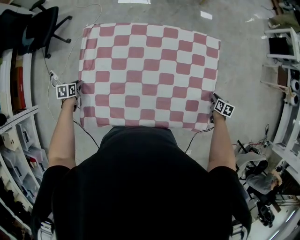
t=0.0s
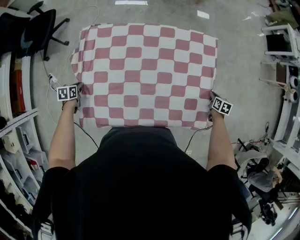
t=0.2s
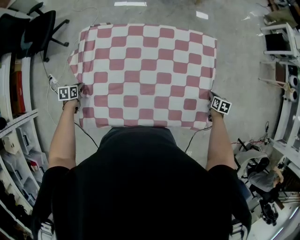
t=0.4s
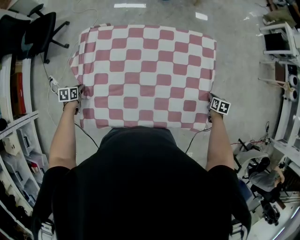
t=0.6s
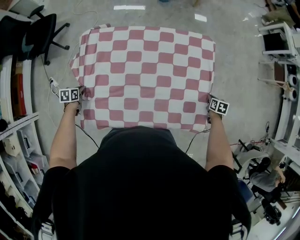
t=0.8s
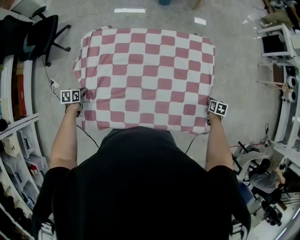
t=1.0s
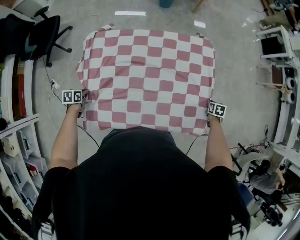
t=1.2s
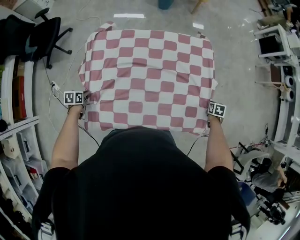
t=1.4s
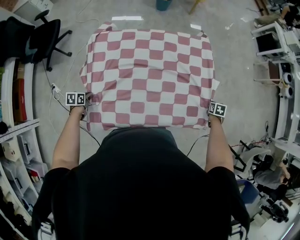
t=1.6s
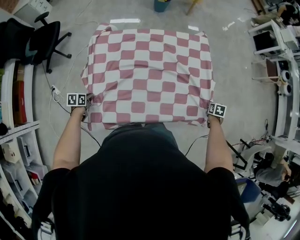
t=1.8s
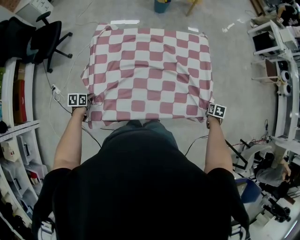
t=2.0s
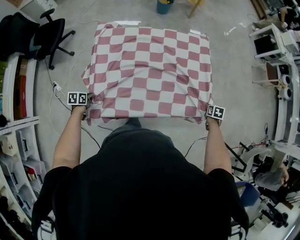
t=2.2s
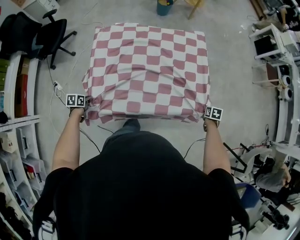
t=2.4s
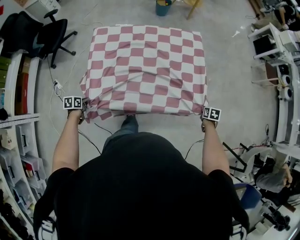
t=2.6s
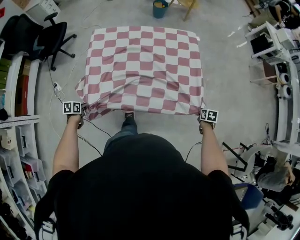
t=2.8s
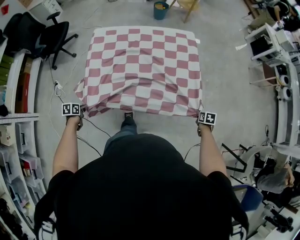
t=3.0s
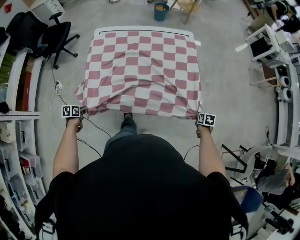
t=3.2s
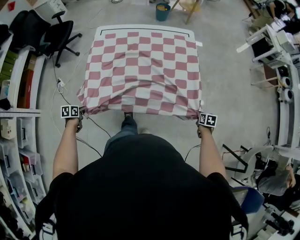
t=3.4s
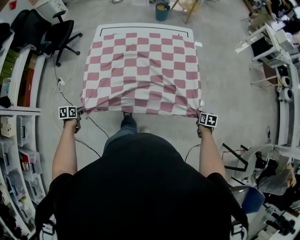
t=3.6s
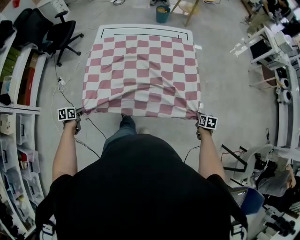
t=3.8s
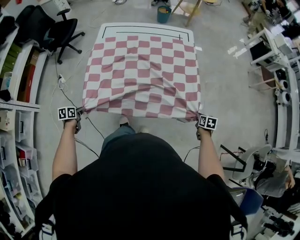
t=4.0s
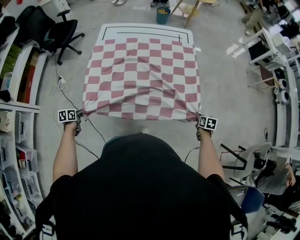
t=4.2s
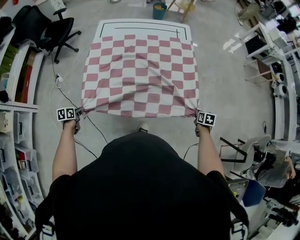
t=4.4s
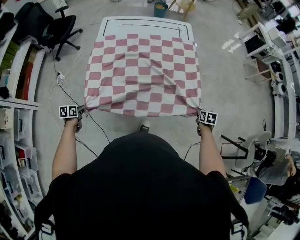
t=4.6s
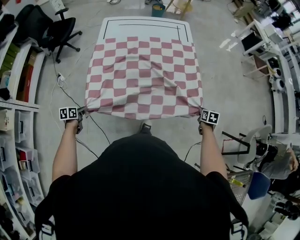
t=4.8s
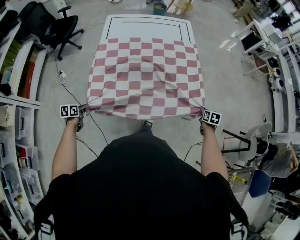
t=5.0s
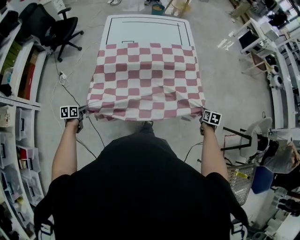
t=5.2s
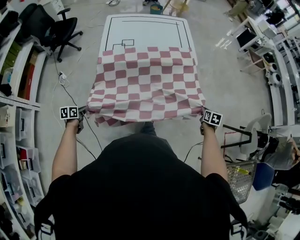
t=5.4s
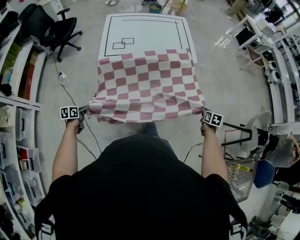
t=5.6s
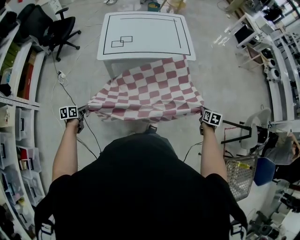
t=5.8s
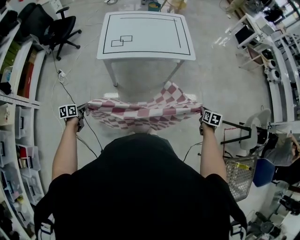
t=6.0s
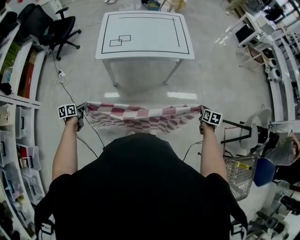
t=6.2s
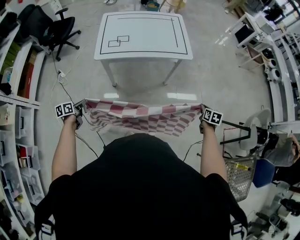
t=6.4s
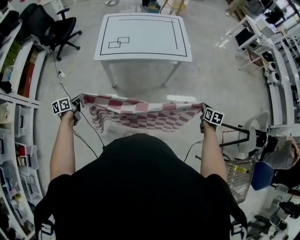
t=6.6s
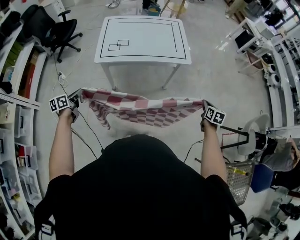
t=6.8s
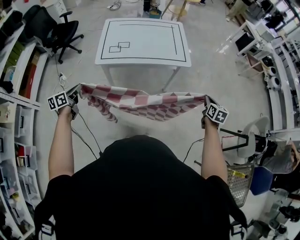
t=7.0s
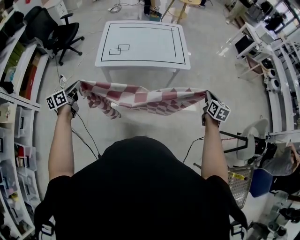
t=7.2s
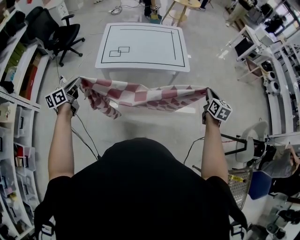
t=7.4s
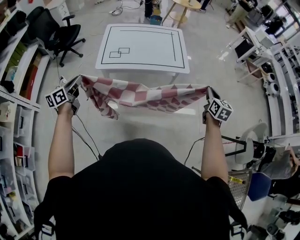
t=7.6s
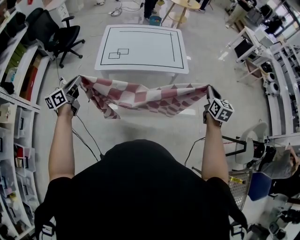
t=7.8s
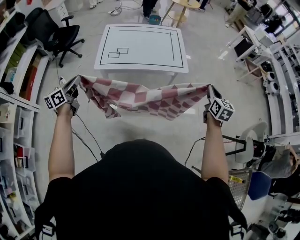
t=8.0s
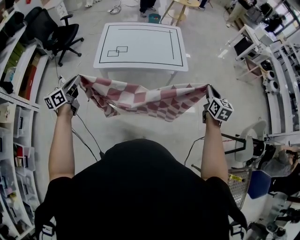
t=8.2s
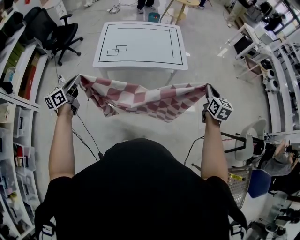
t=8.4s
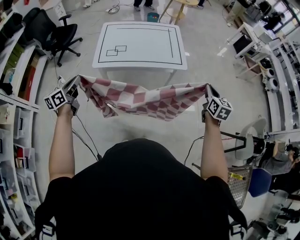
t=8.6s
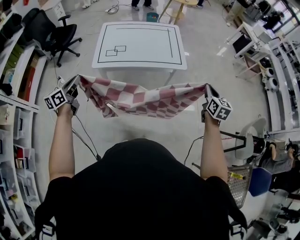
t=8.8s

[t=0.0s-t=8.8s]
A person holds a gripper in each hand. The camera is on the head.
t=0.0s to t=1.4s: The two grippers go about 10 cm backward.
t=1.4s to t=3.0s: The grippers both shift backward and to the right by some 25 cm.
t=3.0s to t=4.4s: Both grippers move backward, about 20 cm.
t=4.4s to t=5.8s: Both grippers travel together backward, some 25 cm.
t=5.8s to t=7.4s: Both grippers travel together upward and forward, about 25 cm. The right gripper swivels roughly 30 degrees; the left gripper angles its fingers upward, by approximately 30 degrees.
t=7.4s to t=8.8s: There are only small adjustments of the grippers.

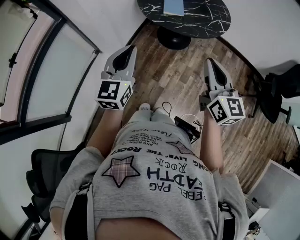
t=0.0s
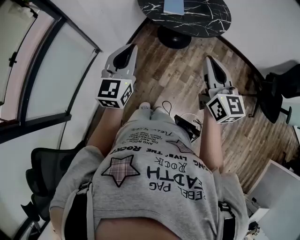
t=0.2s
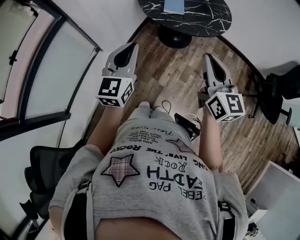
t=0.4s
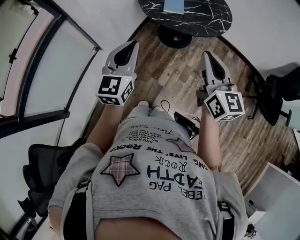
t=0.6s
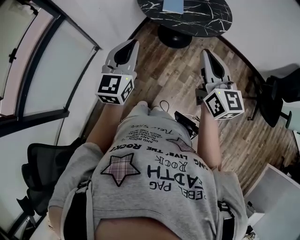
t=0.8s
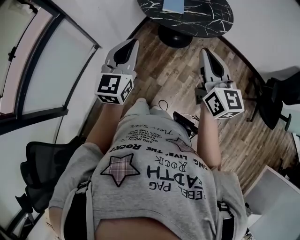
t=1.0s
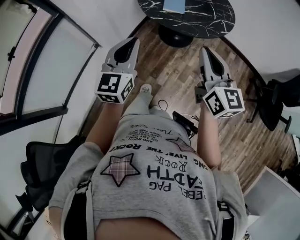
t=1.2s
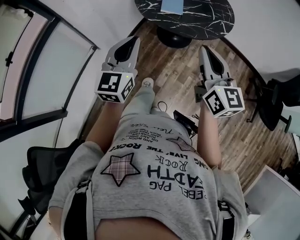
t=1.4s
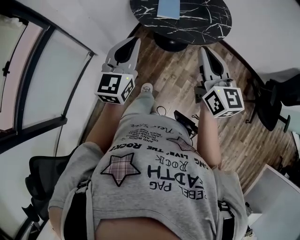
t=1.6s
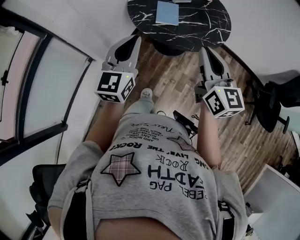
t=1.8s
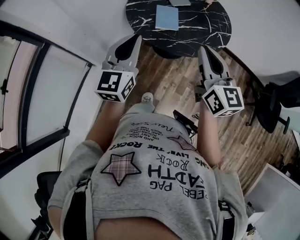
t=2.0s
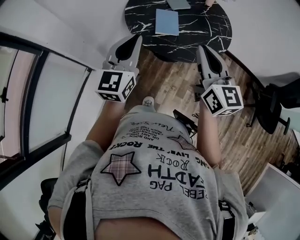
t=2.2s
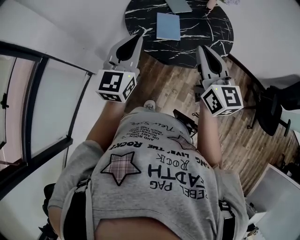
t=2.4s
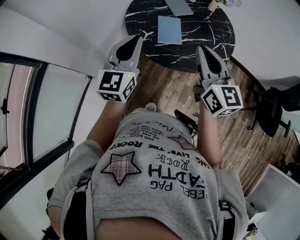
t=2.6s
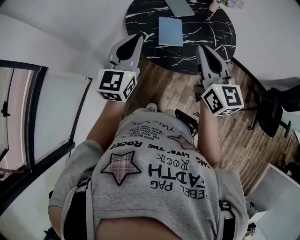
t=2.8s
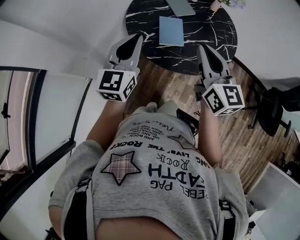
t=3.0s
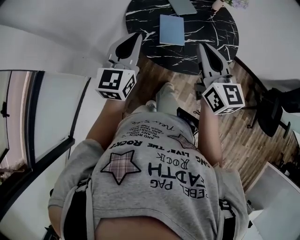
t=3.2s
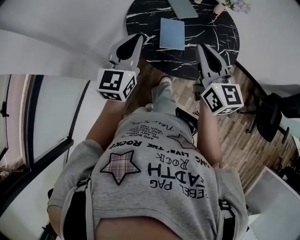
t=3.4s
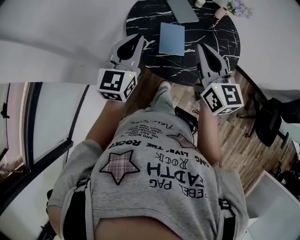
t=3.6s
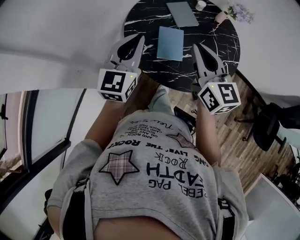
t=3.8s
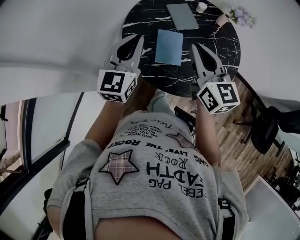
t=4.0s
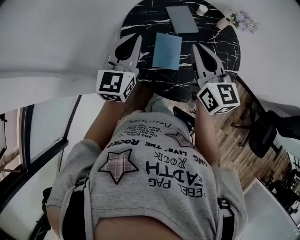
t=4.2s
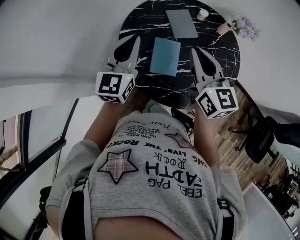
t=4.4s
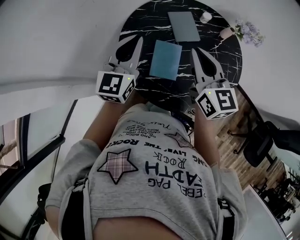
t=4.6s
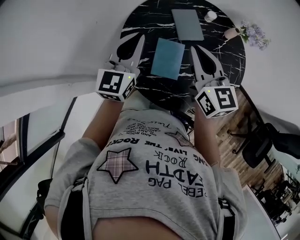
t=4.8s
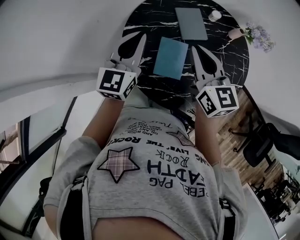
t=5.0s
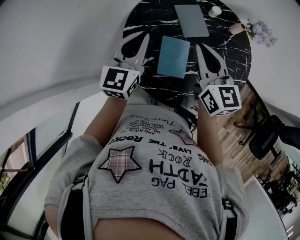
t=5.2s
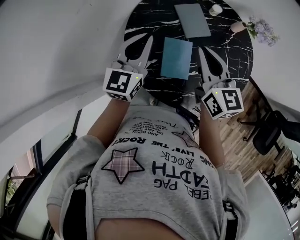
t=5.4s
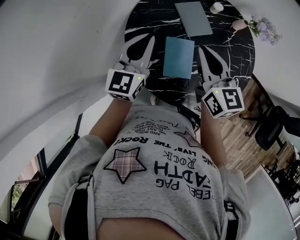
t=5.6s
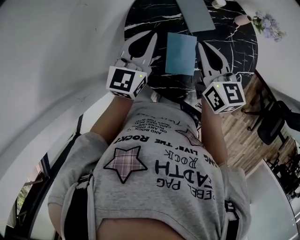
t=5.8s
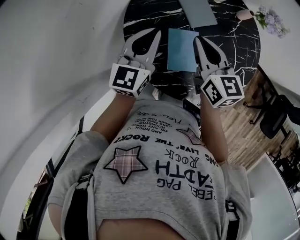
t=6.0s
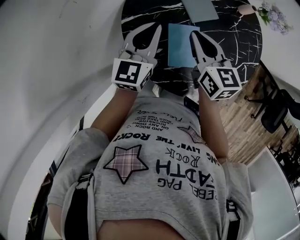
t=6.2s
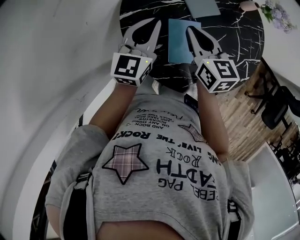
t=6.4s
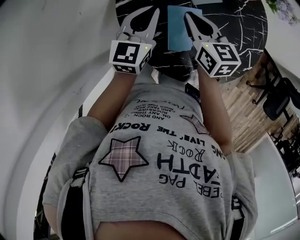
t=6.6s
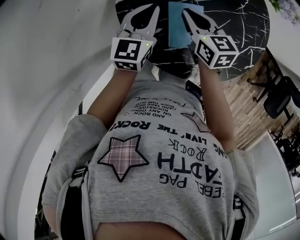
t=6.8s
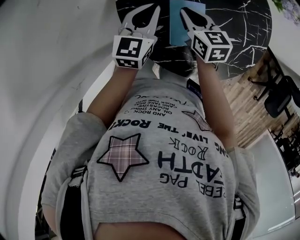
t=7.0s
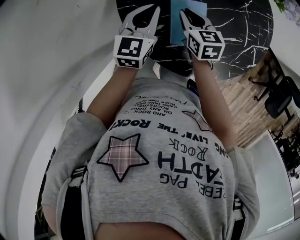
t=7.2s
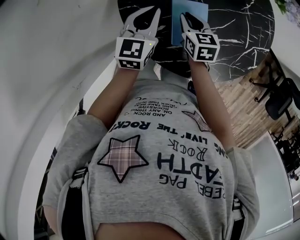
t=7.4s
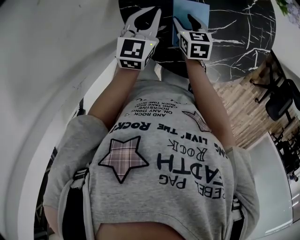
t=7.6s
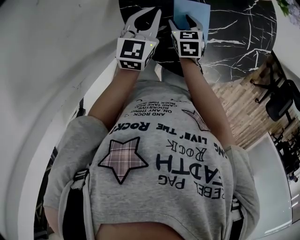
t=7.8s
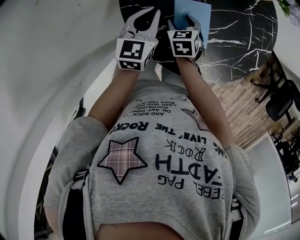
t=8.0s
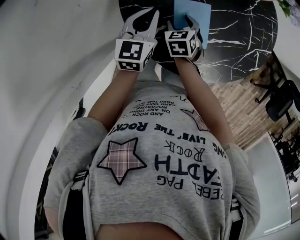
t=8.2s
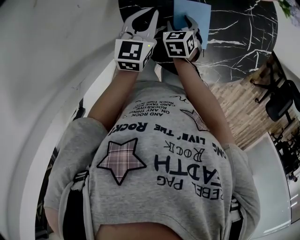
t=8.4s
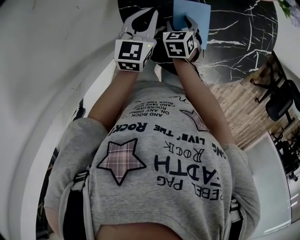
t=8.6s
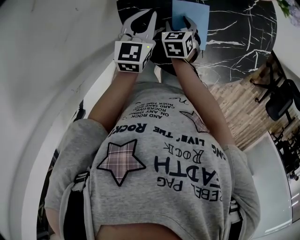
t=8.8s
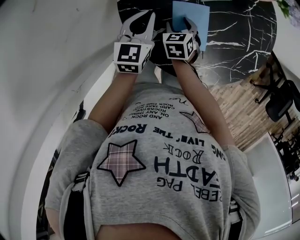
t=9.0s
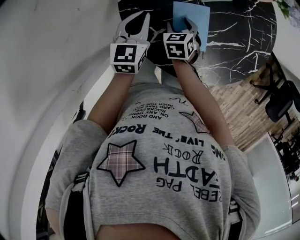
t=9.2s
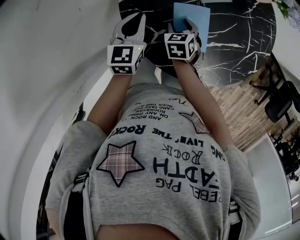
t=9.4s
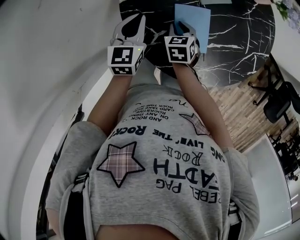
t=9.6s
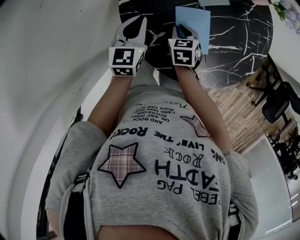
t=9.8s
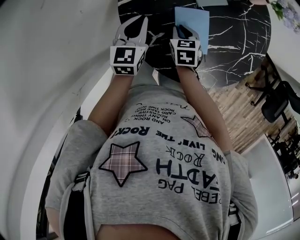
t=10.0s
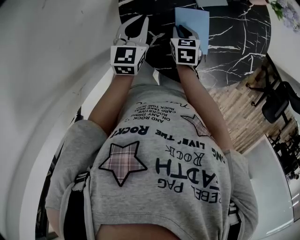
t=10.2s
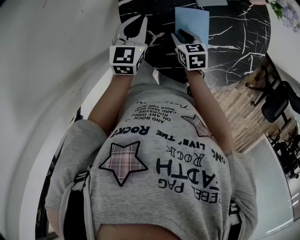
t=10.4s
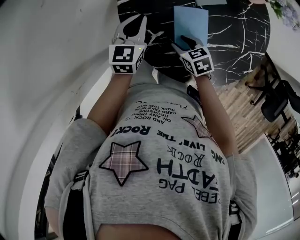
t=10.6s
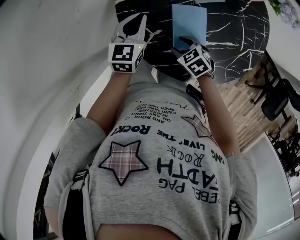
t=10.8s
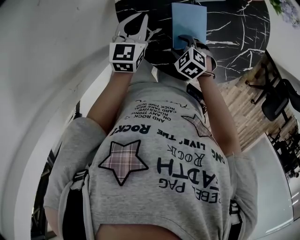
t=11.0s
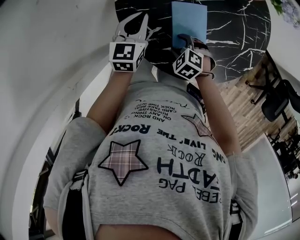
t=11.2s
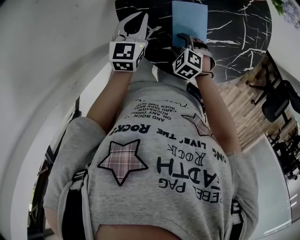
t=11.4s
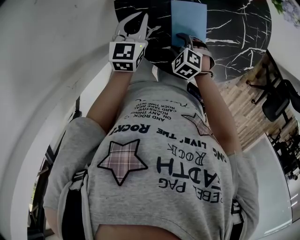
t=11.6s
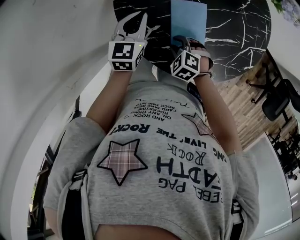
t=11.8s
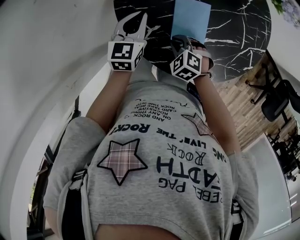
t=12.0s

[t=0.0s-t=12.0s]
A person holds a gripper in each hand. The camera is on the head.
t=0.0s to t=1.6s: The right gripper travels forward by roughly 10 cm; the left gripper heads forward and to the right, covering approximately 15 cm.
t=1.6s to t=3.0s: Both grippers travel together forward, approximately 25 cm.
t=3.0s to t=4.4s: The two grippers go some 20 cm forward.
t=4.4s to t=6.0s: The right gripper shifts about 15 cm downward, forward and to the left. Meanwhile the left gripper travels forward and downward by some 15 cm.
t=6.0s to t=7.6s: The right gripper goes roughly 25 cm downward, turns by roughly 30 degrees, and opens its fingers, while the left gripper shifts roughly 10 cm downward.
t=9.0s to t=10.4s: The right gripper closes its fingers.
t=10.4s to t=12.0s: The right gripper moves backward, roughly 5 cm, twists some 50 degrees counterclockwise, seen from behind, and opens, then closes once more.

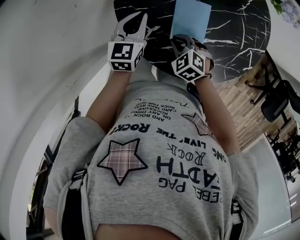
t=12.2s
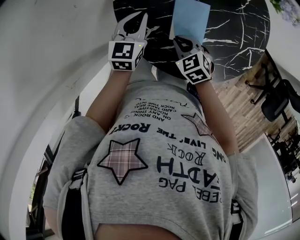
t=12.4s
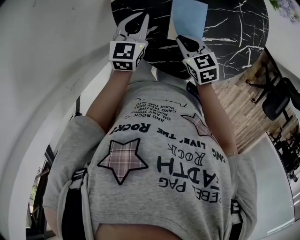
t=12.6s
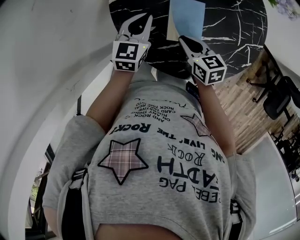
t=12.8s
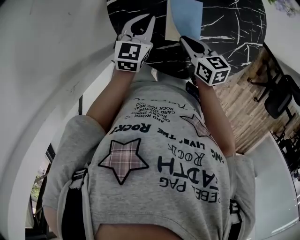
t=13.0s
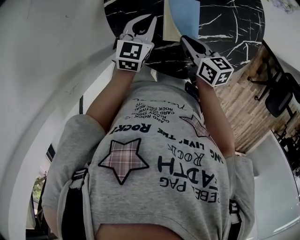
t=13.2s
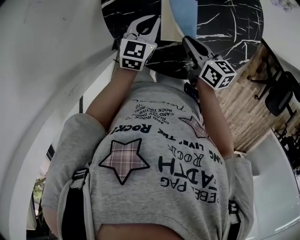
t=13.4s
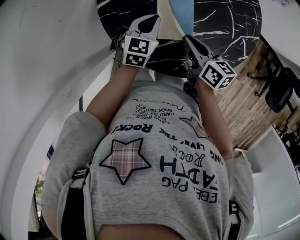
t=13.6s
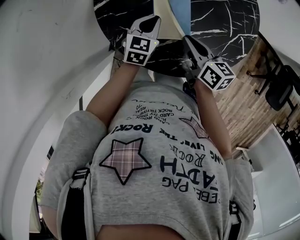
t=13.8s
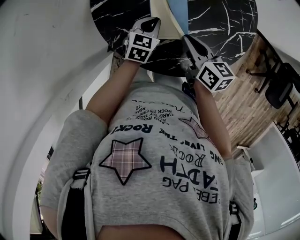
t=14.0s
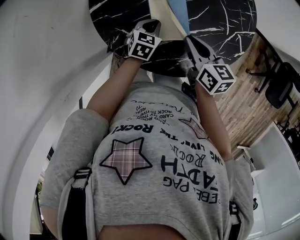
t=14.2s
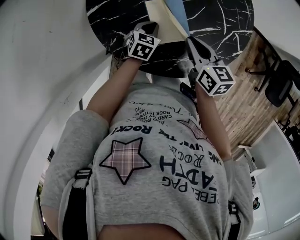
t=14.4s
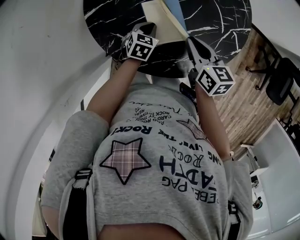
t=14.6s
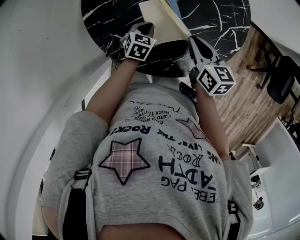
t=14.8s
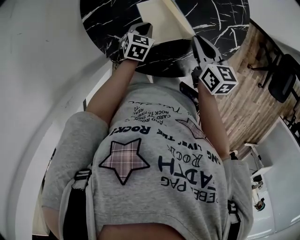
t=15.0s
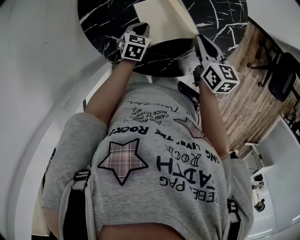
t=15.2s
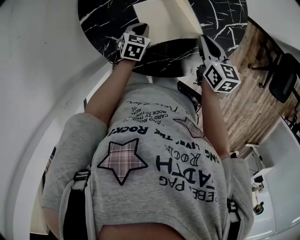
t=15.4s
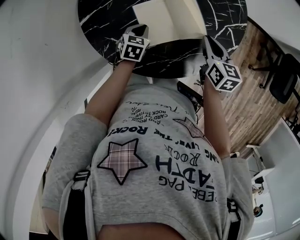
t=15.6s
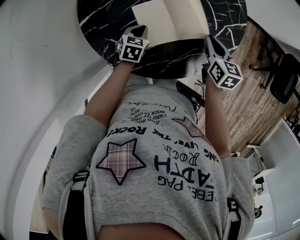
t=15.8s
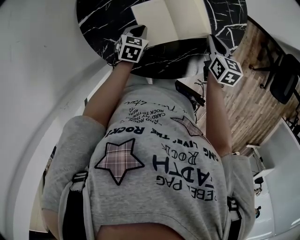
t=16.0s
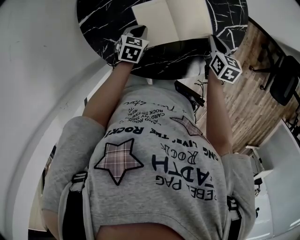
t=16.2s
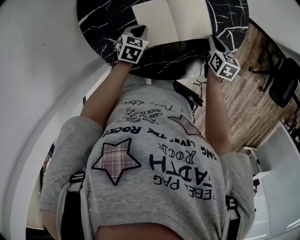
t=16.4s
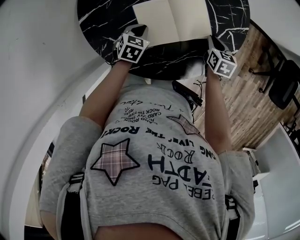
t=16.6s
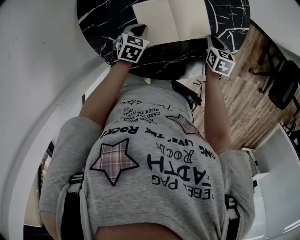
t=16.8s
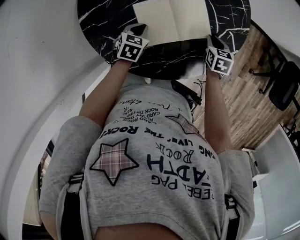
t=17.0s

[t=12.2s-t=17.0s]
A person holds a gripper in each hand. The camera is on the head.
t=12.2s to t=13.8s: The left gripper travels to the right and downward by approximately 15 cm. The right gripper shifts approximately 15 cm to the right and upward, and rotates around the line of its fingers by roughly 70 degrees, clockwise from behind.
t=13.8s to t=15.4s: The left gripper travels downward by approximately 10 cm. Meanwhile the right gripper shifts roughly 15 cm to the right, and swivels approximately 20 degrees.
t=15.4s to t=17.0s: The right gripper moves downward and to the right, some 15 cm, and rotates roughly 20 degrees.
